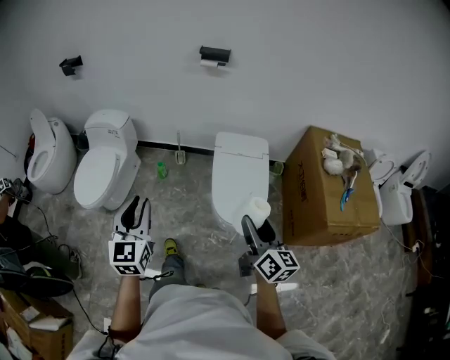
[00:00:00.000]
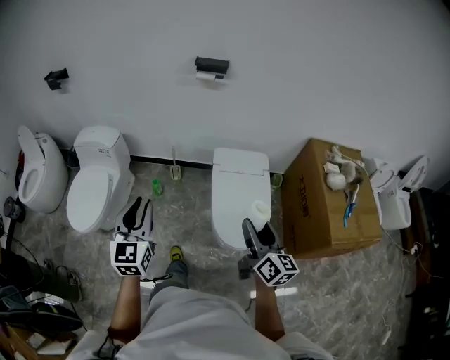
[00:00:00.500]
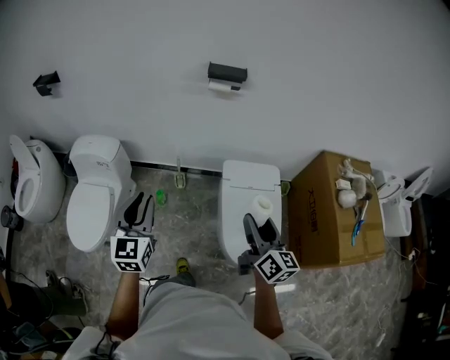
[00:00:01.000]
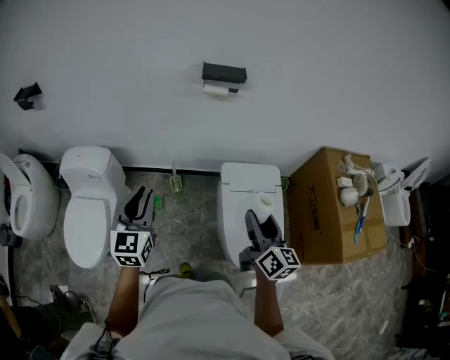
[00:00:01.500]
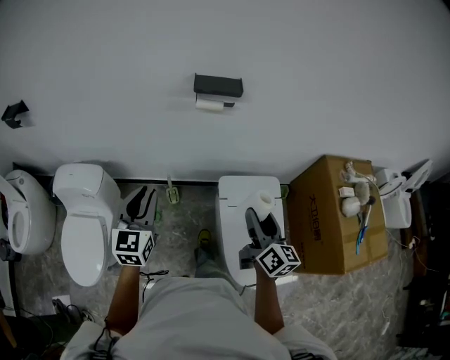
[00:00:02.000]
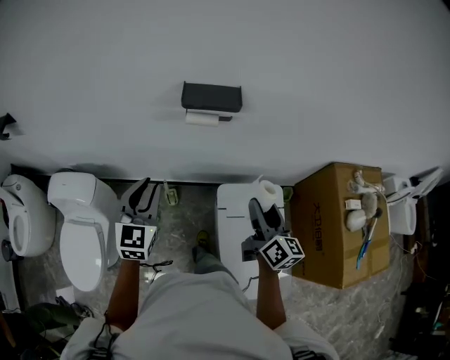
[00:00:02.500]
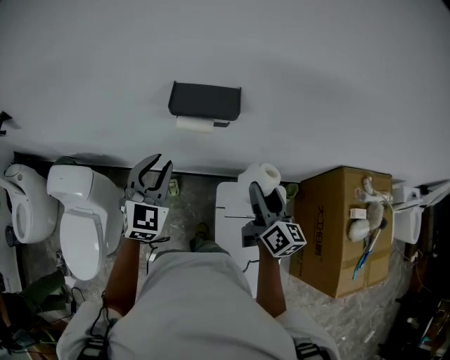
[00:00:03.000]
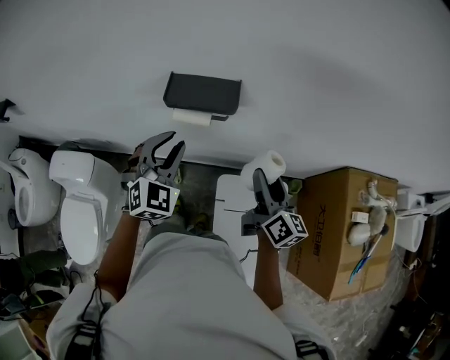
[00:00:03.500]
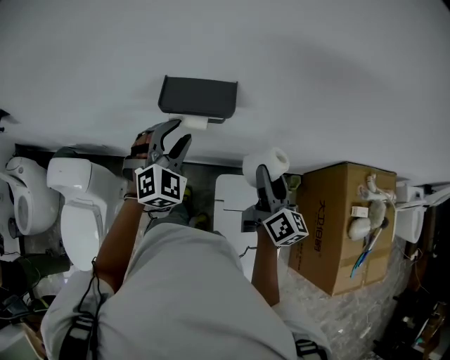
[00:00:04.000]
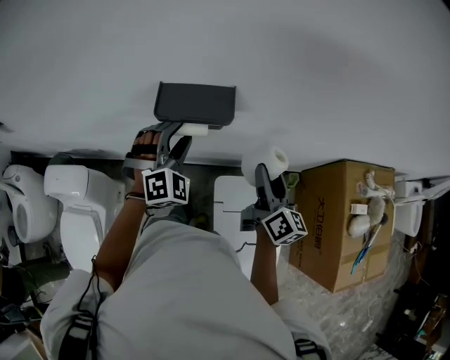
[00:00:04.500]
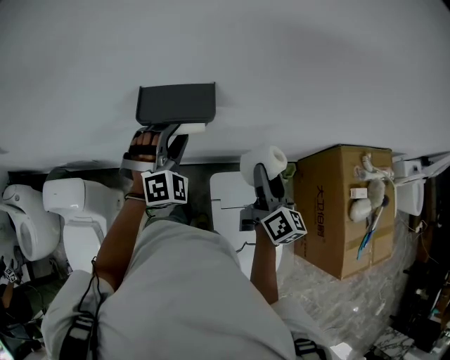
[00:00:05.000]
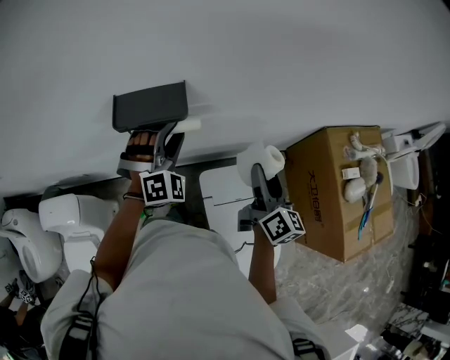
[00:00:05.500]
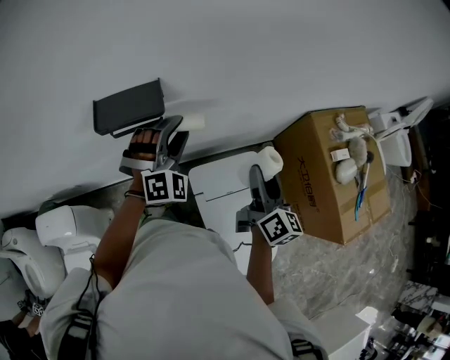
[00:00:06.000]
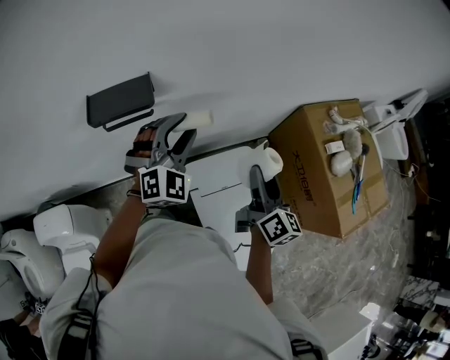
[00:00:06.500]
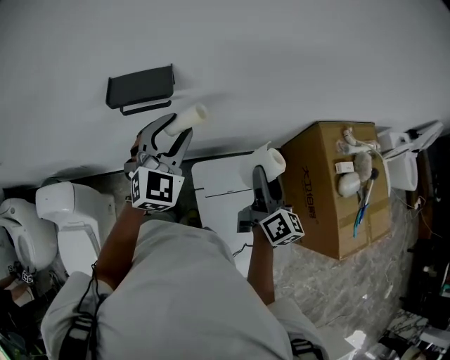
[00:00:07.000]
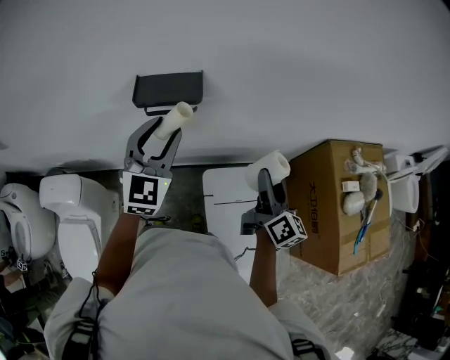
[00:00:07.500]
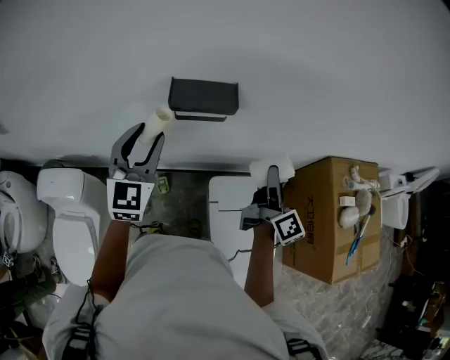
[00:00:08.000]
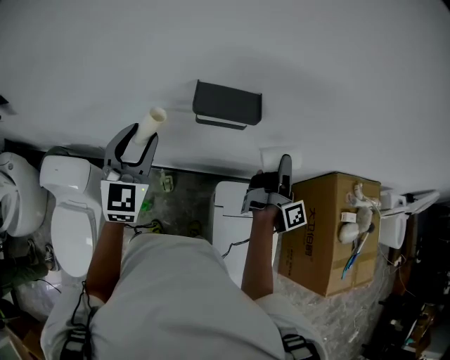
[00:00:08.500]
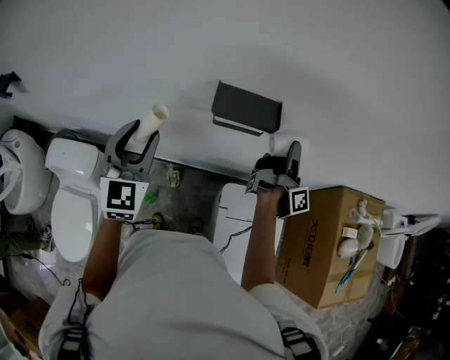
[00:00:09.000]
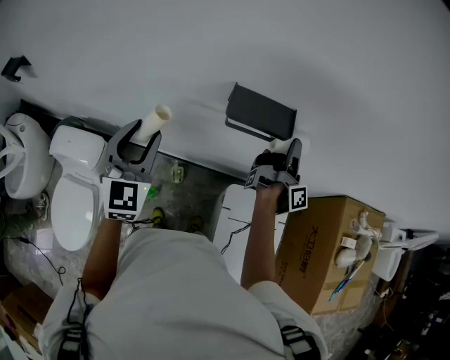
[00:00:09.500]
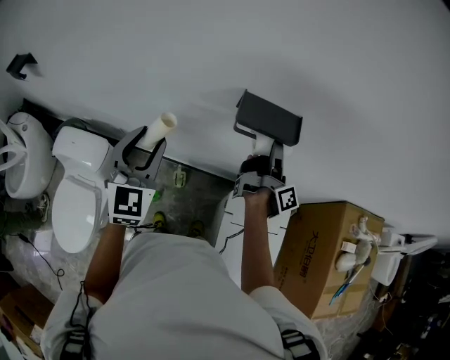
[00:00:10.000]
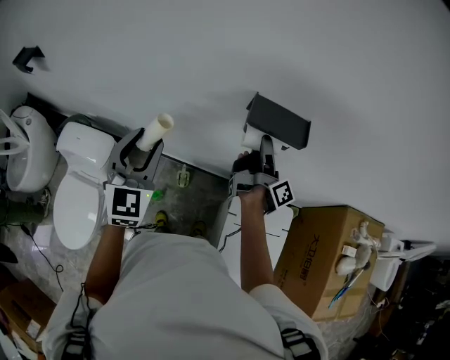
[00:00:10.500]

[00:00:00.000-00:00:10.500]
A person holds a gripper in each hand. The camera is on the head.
00:00:00.000 to 00:00:02.000: The two grippers travel together, forward, some 60 cm.
00:00:02.000 to 00:00:04.000: The right gripper is displaced forward by roughly 30 cm. Meanwhile the left gripper heads forward and to the right, covering roughly 40 cm, and rolls clockwise, seen from behind, by some 50 degrees.
00:00:04.000 to 00:00:06.500: The right gripper shifts some 15 cm to the right and backward, and turns by roughly 20 degrees; the left gripper heads to the right, covering roughly 20 cm, and swivels approximately 30 degrees.
00:00:06.500 to 00:00:08.500: The right gripper shifts approximately 20 cm to the left and forward, and twists roughly 40 degrees clockwise, seen from behind; the left gripper moves to the left, approximately 35 cm, and turns by about 50 degrees.
00:00:08.500 to 00:00:10.500: The right gripper moves to the left, about 20 cm, and changes its angle by approximately 20 degrees. The left gripper travels to the left and backward by approximately 10 cm.

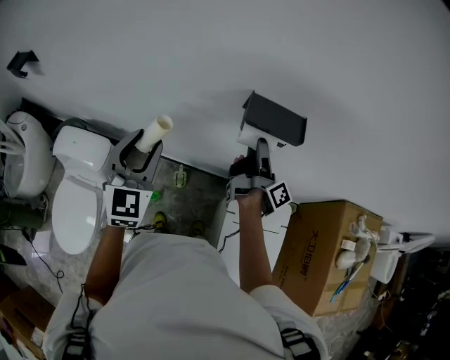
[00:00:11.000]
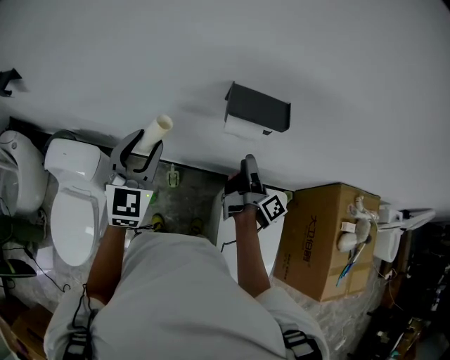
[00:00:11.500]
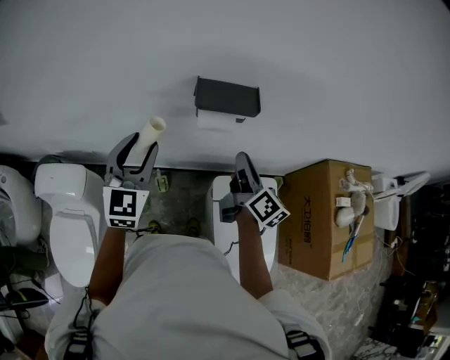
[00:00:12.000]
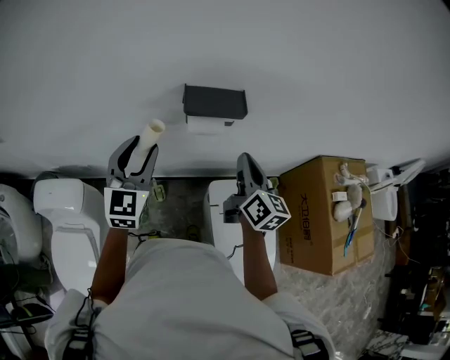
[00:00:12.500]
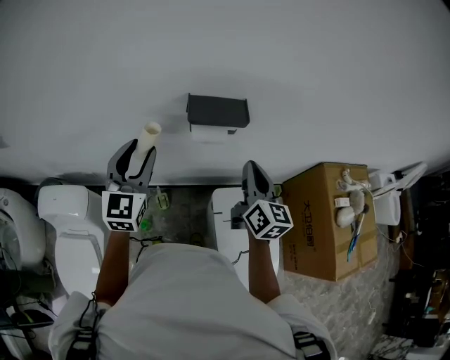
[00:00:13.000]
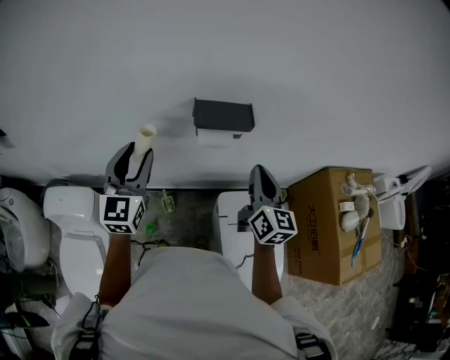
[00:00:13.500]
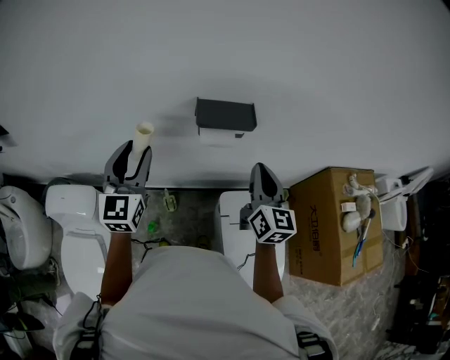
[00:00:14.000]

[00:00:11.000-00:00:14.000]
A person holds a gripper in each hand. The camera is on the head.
00:00:11.000 to 00:00:12.500: The right gripper moves backward, to the right and upward, approximately 15 cm, rotates around the line of its fingers by approximately 60 degrees, counterclockwise from behind, and closes. The left gripper is displaced to the right by roughly 10 cm.
00:00:12.500 to 00:00:14.000: The left gripper ends up approximately 5 cm from where it was.

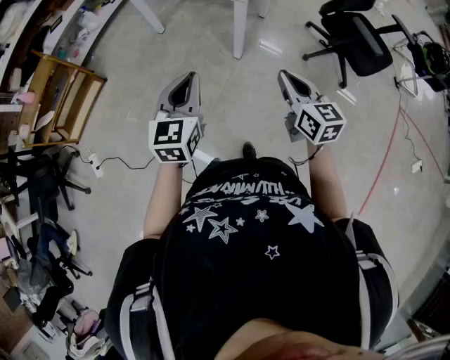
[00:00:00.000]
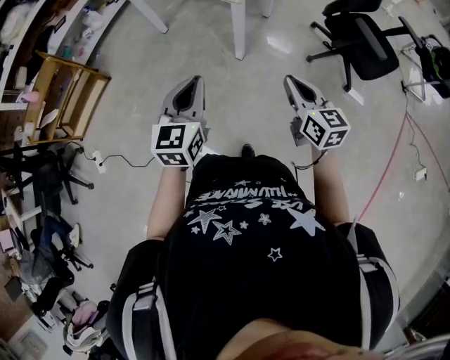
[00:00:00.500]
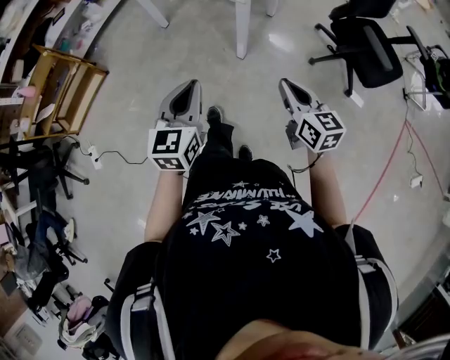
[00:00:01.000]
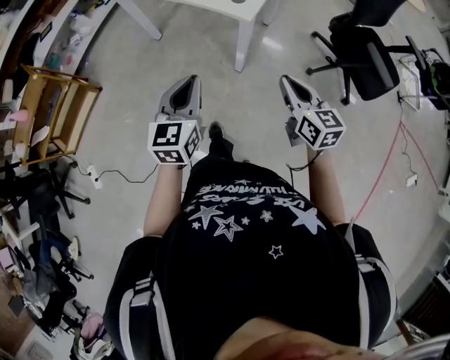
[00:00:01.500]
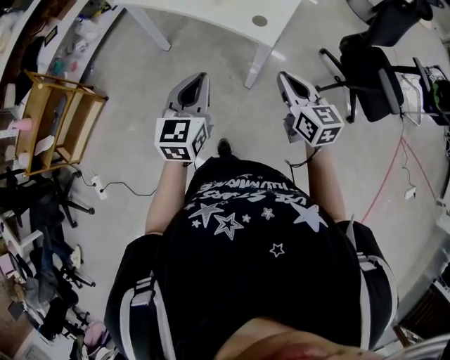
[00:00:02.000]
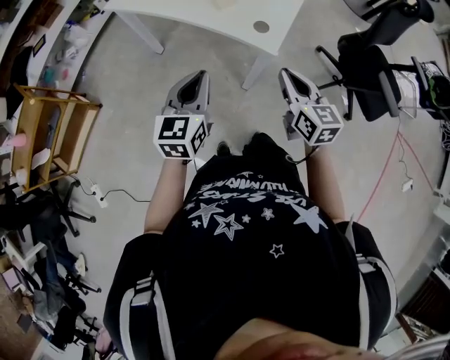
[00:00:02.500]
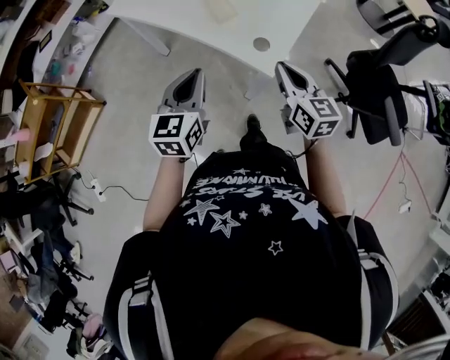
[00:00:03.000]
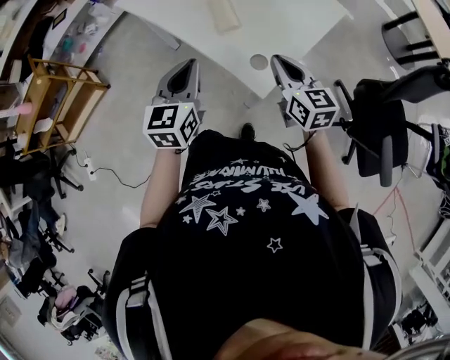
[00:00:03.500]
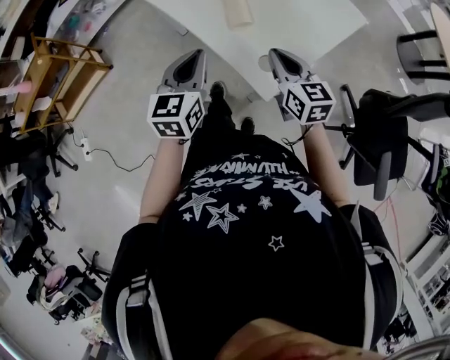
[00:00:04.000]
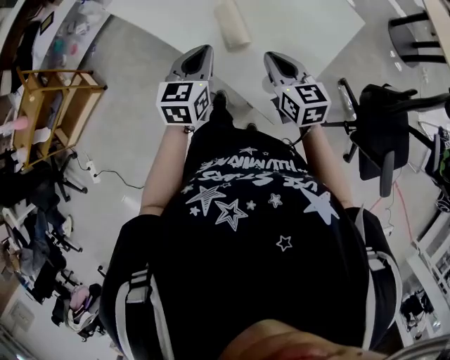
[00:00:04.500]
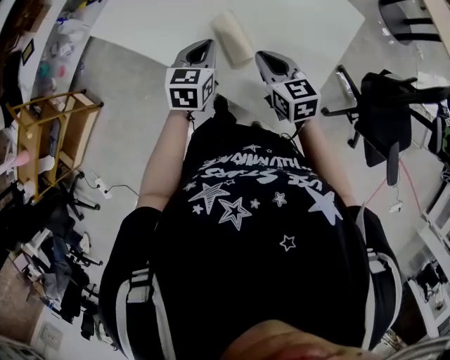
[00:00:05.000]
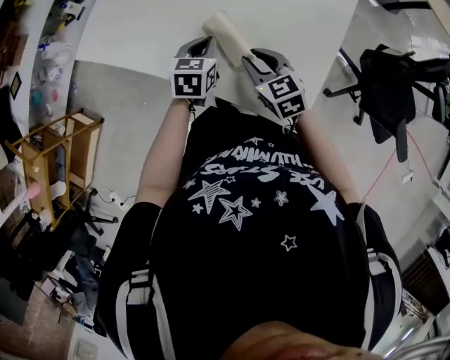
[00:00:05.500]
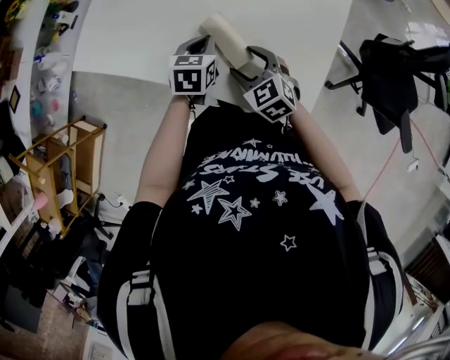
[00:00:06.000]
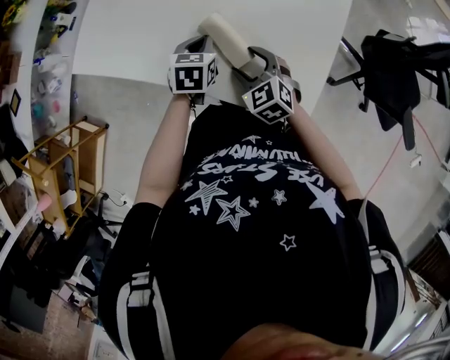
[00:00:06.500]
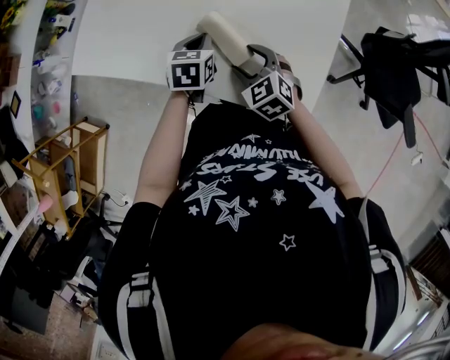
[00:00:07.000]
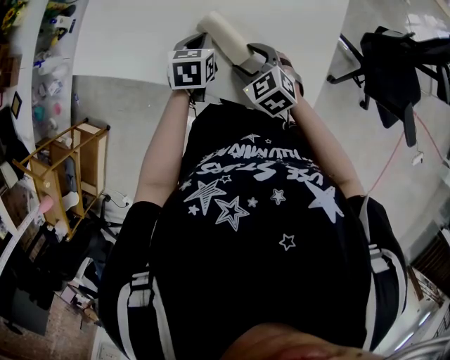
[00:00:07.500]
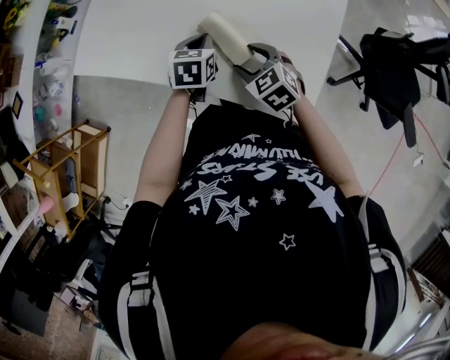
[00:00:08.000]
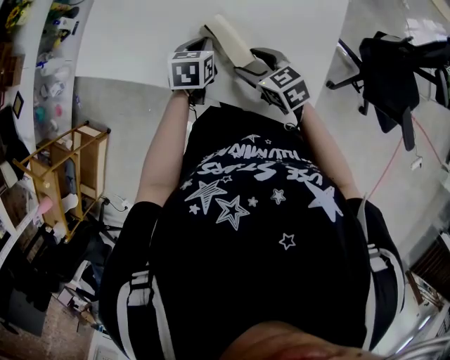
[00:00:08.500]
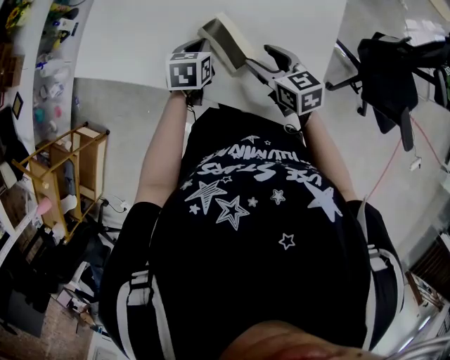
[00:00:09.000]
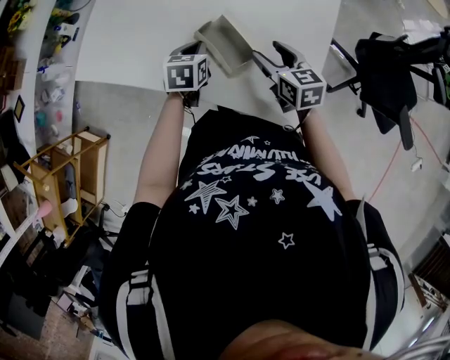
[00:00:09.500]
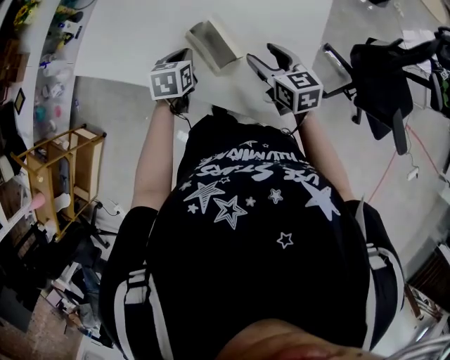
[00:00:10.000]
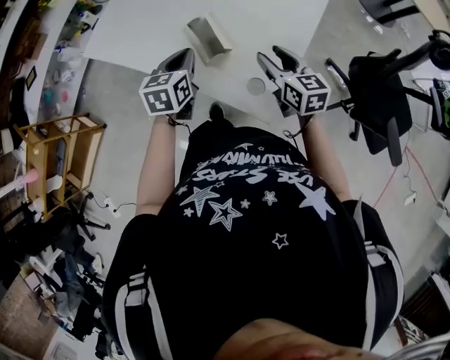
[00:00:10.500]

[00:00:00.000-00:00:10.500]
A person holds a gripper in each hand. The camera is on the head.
00:00:00.000 to 00:00:02.000: The two grippers go approximately 30 cm forward.
00:00:02.000 to 00:00:04.000: The two grippers go about 25 cm forward.
00:00:04.000 to 00:00:06.500: The right gripper moves some 20 cm, turns by roughly 40 degrees, and opens its fingers, while the left gripper shifts by approximately 30 cm, and rotates about 40 degrees.
00:00:06.500 to 00:00:08.500: The right gripper turns by some 20 degrees.
00:00:08.500 to 00:00:10.500: The left gripper moves upward and backward, about 15 cm, while the right gripper travels to the right and upward by roughly 15 cm, and swivels some 20 degrees.

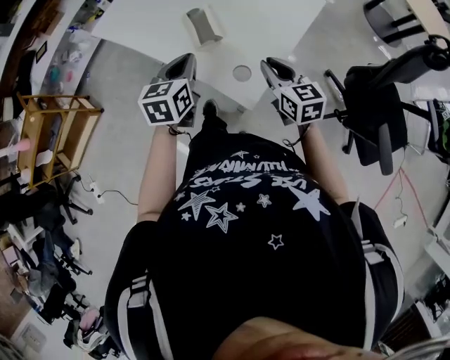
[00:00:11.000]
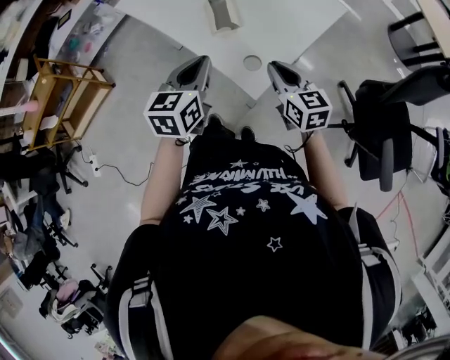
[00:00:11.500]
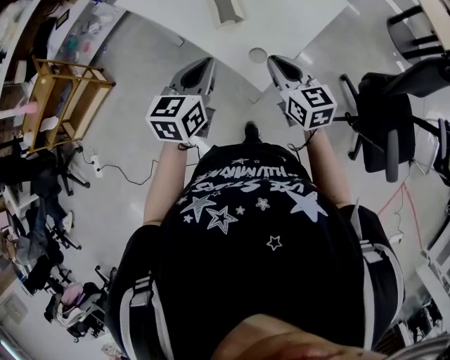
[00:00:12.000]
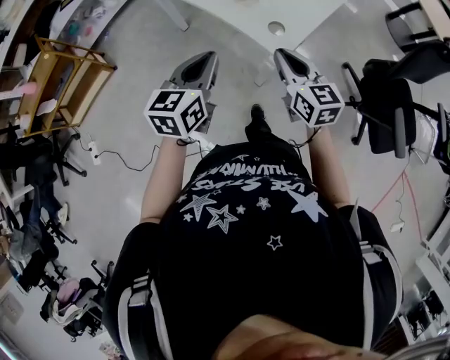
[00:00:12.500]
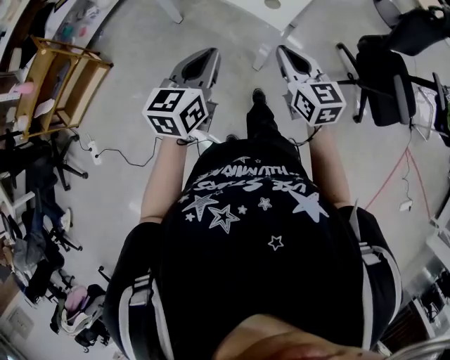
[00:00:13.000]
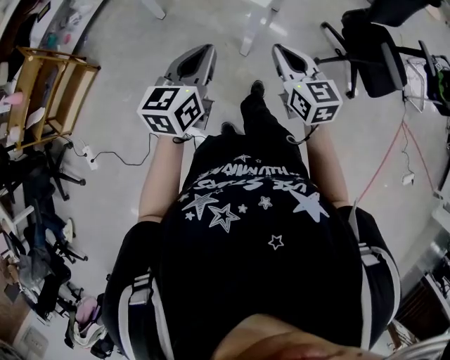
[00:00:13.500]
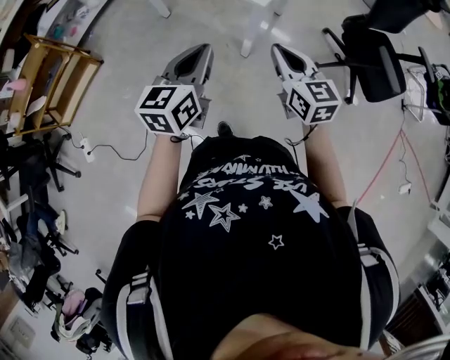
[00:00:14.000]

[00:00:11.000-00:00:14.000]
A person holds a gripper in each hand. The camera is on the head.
00:00:11.000 to 00:00:12.500: The left gripper goes some 20 cm backward; the right gripper travels backward and to the left by some 20 cm.
00:00:12.500 to 00:00:14.000: Both grippers travel together backward, some 20 cm.
